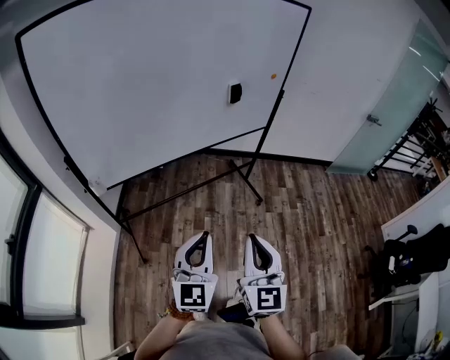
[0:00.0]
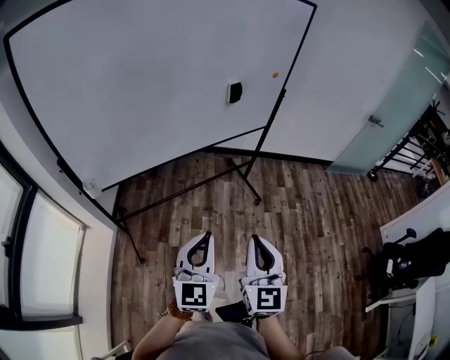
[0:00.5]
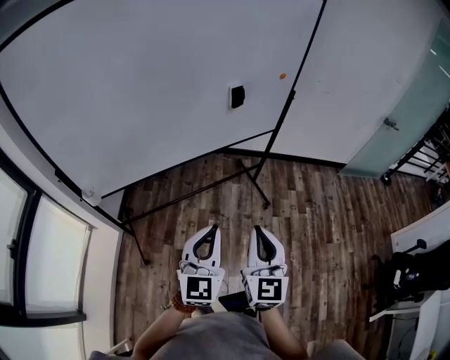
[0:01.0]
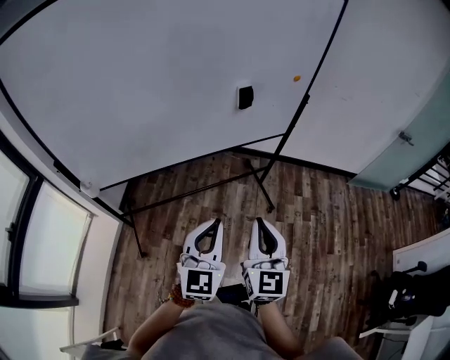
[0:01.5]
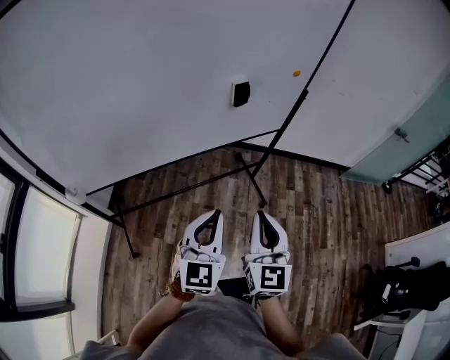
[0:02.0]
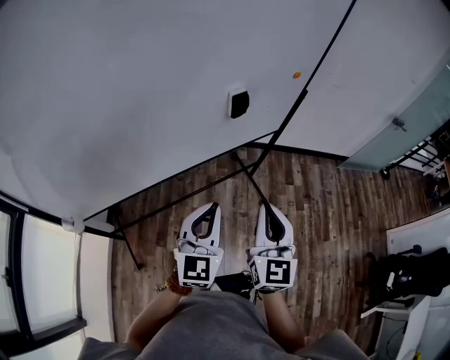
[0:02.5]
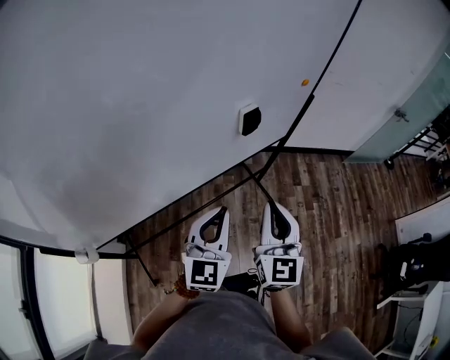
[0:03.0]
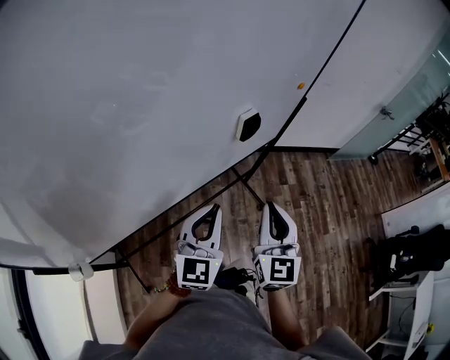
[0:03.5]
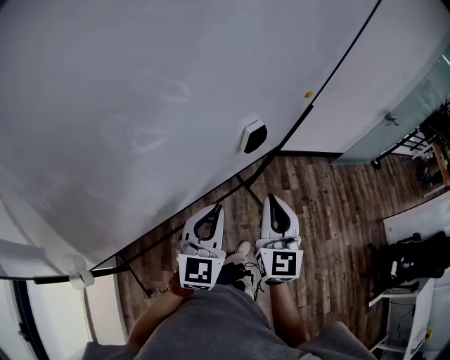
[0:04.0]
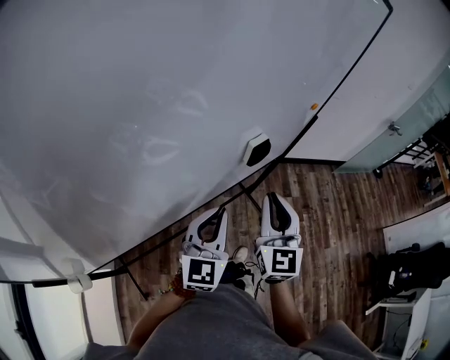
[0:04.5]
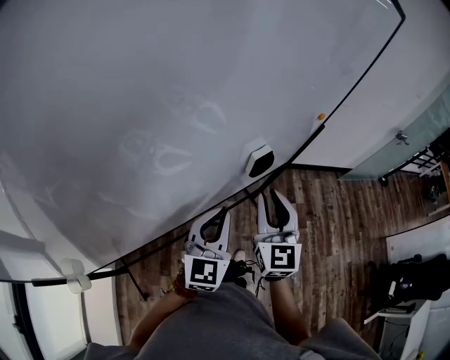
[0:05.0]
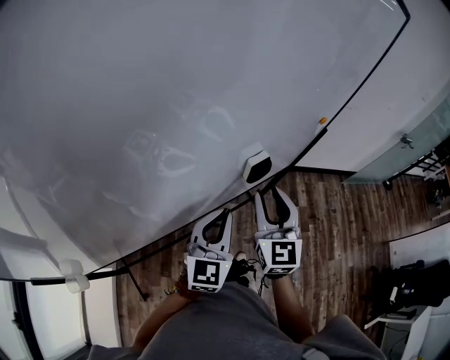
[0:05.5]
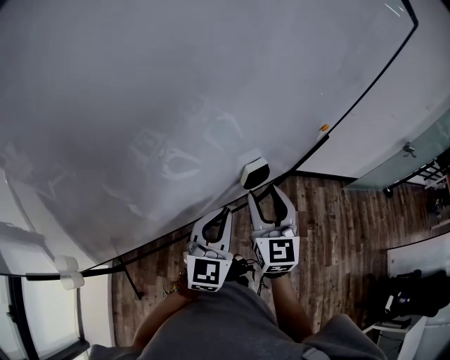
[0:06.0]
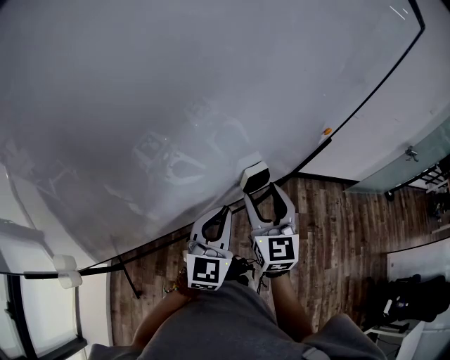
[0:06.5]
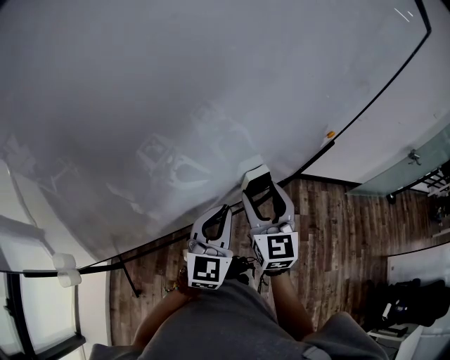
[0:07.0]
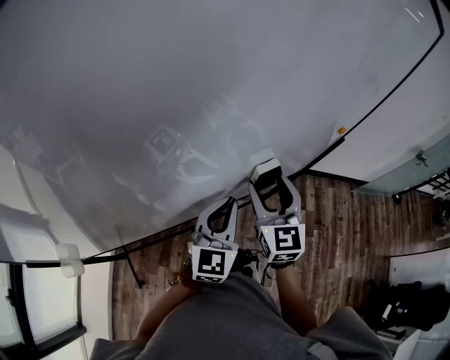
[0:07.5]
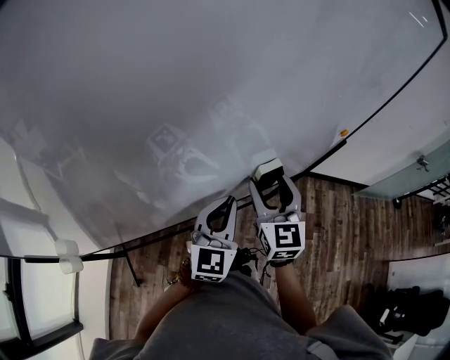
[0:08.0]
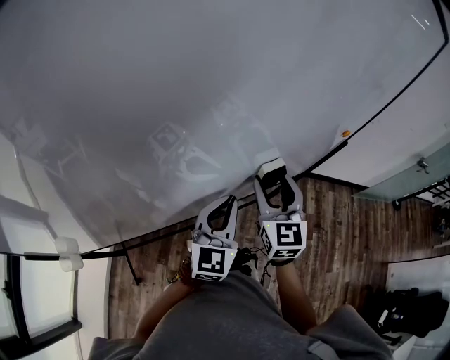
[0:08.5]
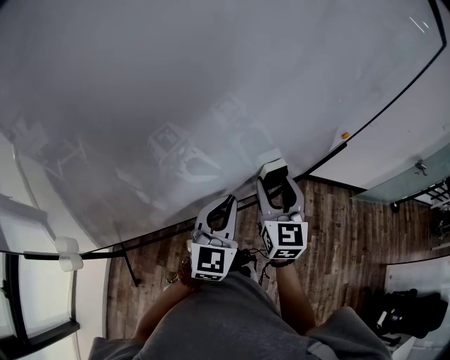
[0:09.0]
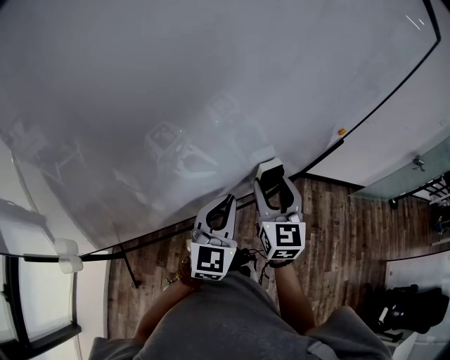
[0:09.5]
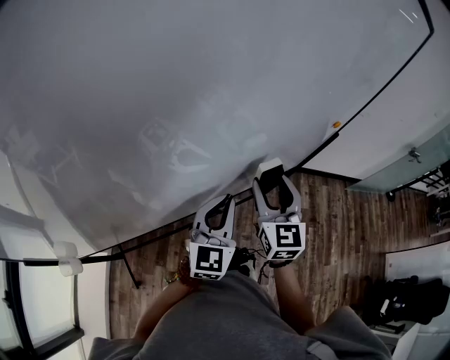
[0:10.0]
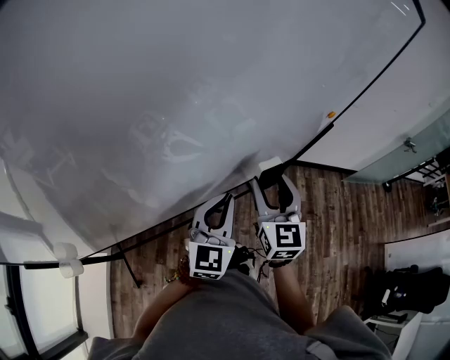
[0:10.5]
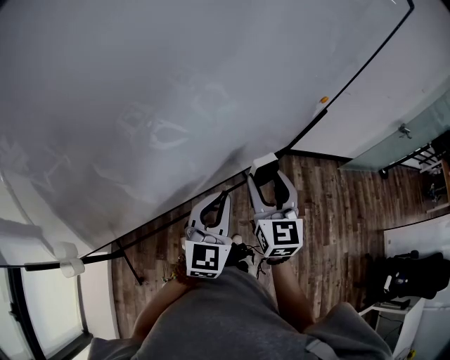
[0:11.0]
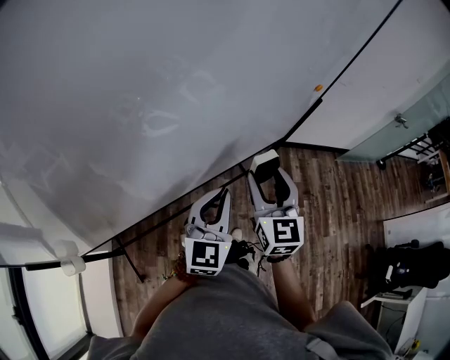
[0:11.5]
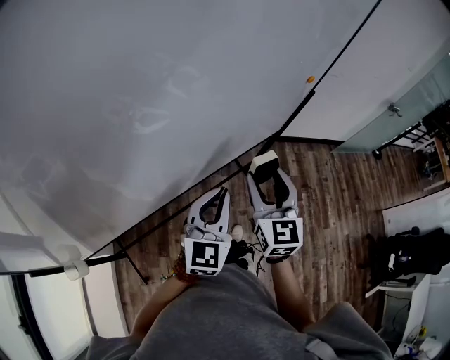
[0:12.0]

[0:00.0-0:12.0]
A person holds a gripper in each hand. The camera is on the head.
0:00.0 to 0:02.0: The two grippers go about 30 cm forward.
0:02.0 to 0:04.0: The two grippers go about 25 cm forward and to the left.
0:04.0 to 0:06.0: The two grippers go roughly 10 cm forward. The right gripper opens its fingers.
0:06.0 to 0:10.0: The grippers make only small movements.
0:10.0 to 0:12.0: The grippers both shift backward by roughly 10 cm.

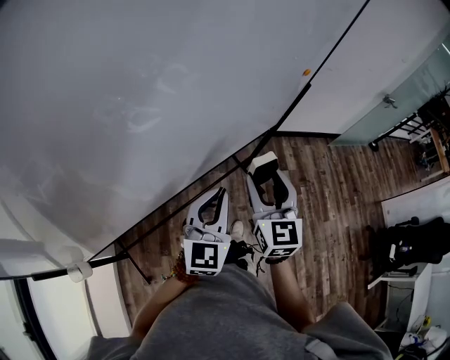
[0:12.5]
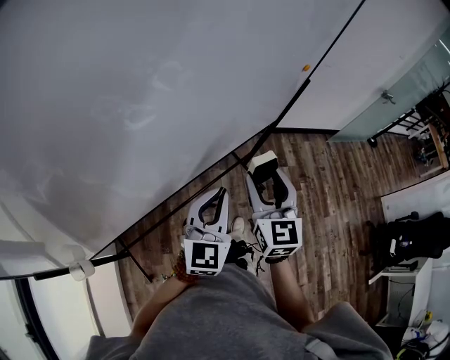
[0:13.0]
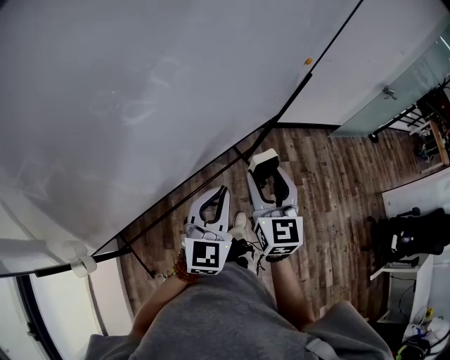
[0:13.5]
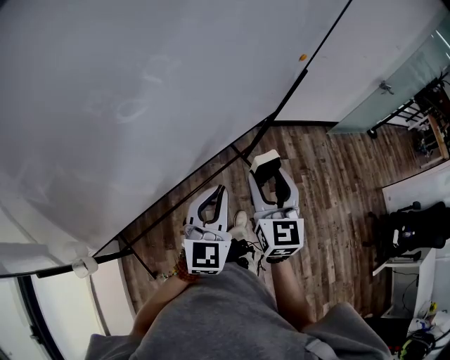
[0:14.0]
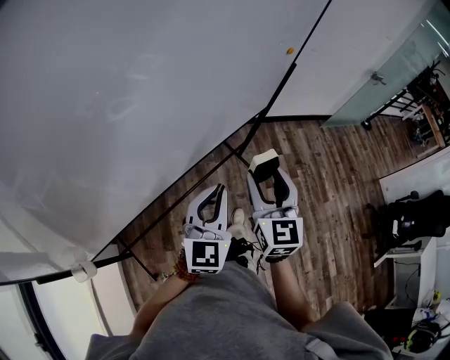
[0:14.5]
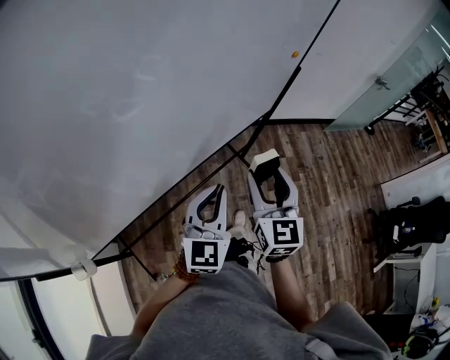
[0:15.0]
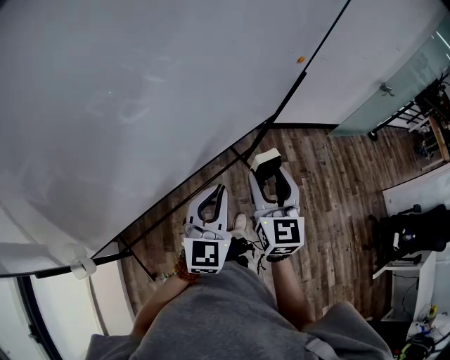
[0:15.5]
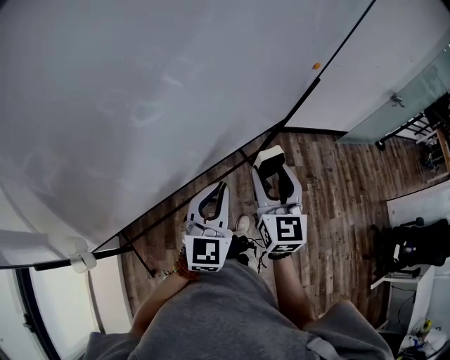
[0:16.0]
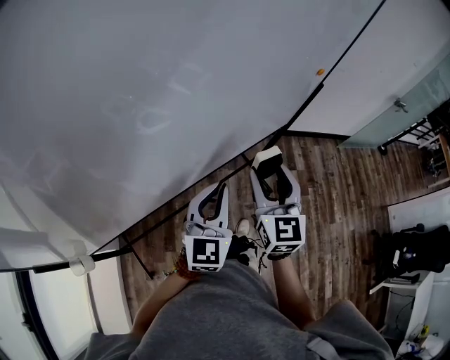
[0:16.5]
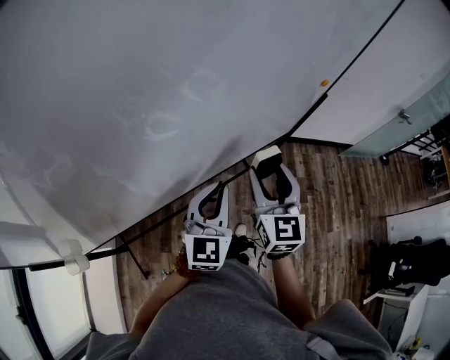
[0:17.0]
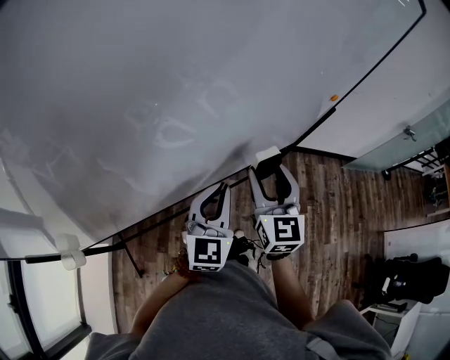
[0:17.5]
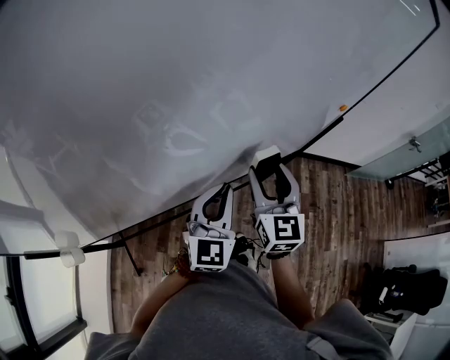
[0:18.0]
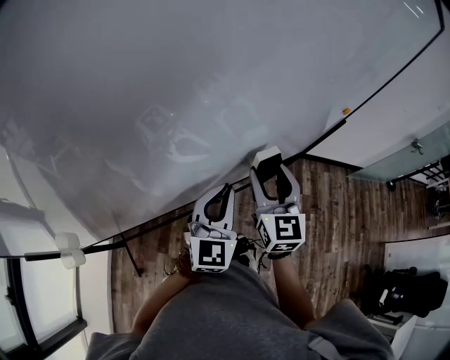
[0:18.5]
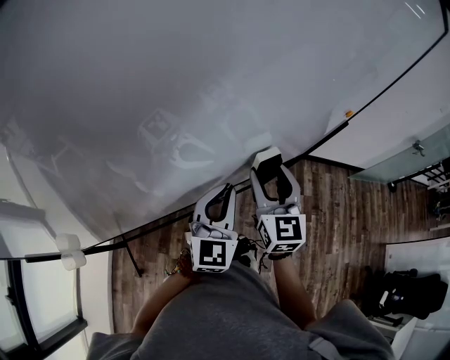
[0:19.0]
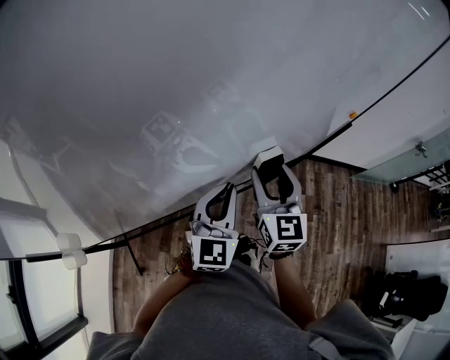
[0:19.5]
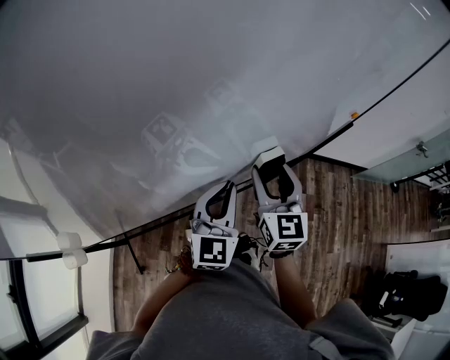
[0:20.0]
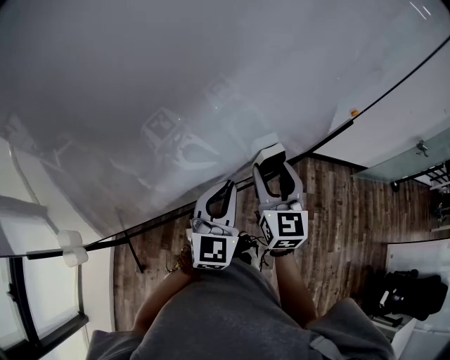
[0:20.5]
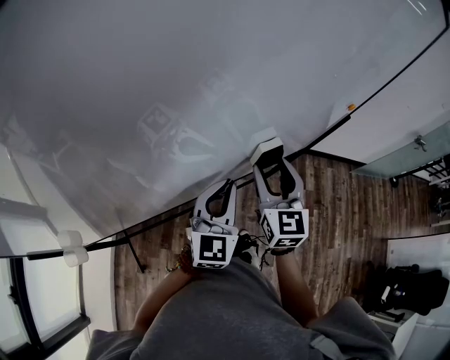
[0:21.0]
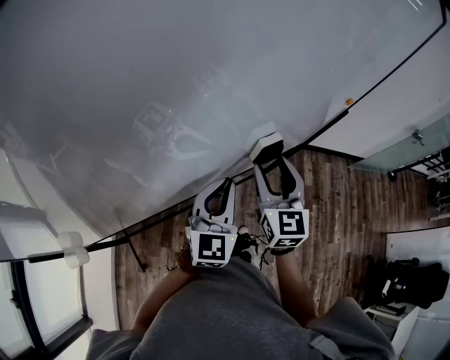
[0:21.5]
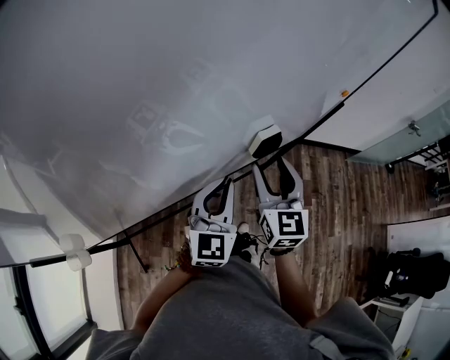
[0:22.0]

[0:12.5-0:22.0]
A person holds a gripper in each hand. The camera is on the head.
0:12.5 to 0:14.5: The right gripper goes roughly 5 cm backward, while the left gripper ends up roughly 5 cm from where it was.
0:14.5 to 0:16.5: Both grippers move forward, approximately 5 cm.
0:16.5 to 0:18.0: The two grippers go roughly 10 cm forward.
0:18.0 to 0:22.0: The grippers stay close to where they were, moving slightly.

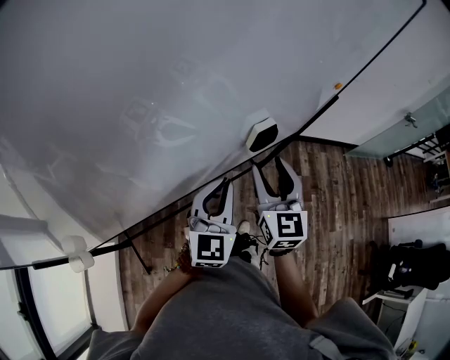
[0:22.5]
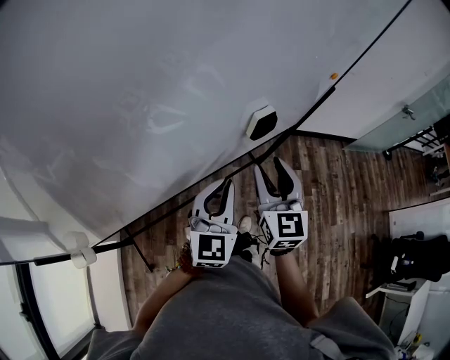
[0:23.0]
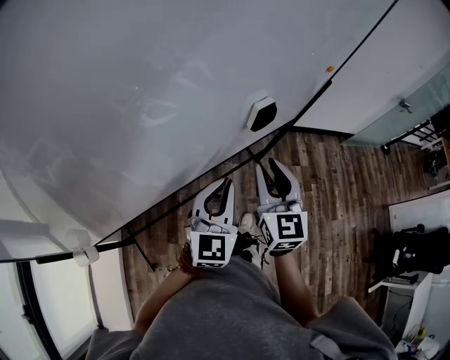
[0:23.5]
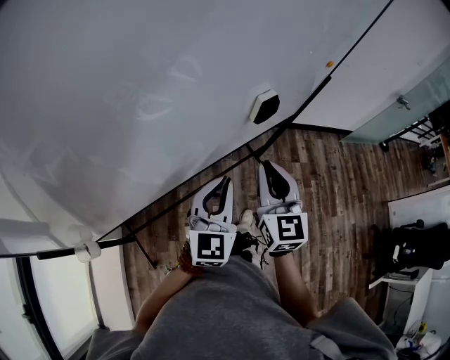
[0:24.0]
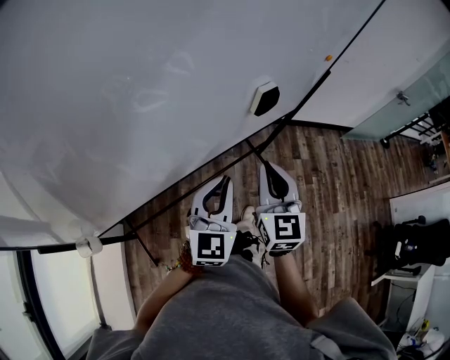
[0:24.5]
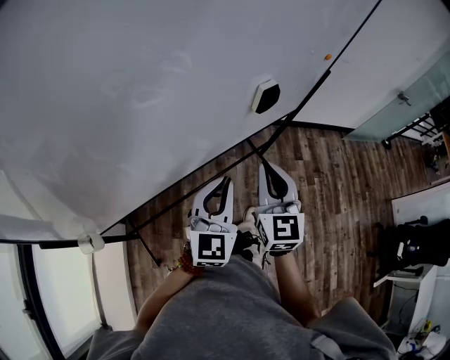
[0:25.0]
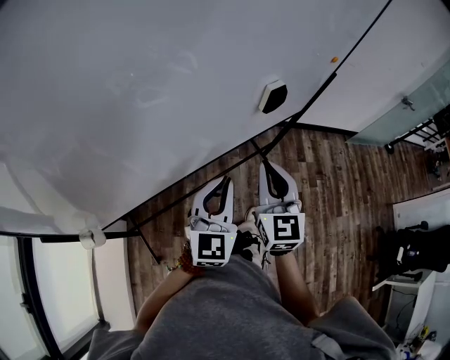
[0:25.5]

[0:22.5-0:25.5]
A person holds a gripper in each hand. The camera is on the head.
0:22.5 to 0:24.0: Both grippers move backward, approximately 10 cm. The right gripper closes.
0:24.0 to 0:25.5: The grippers stay close to where they were, moving slightly.

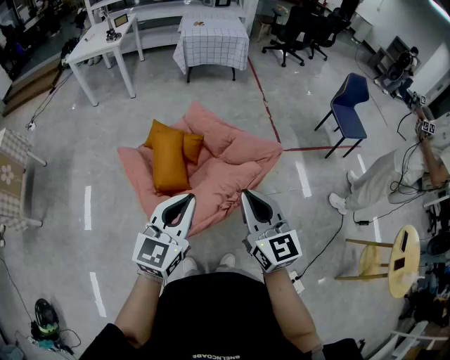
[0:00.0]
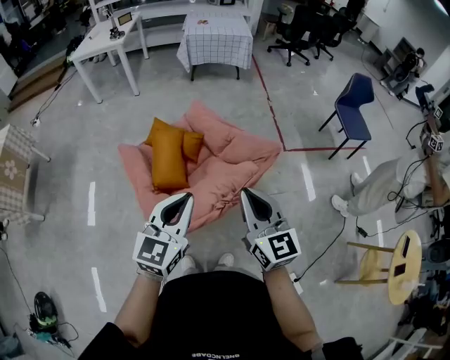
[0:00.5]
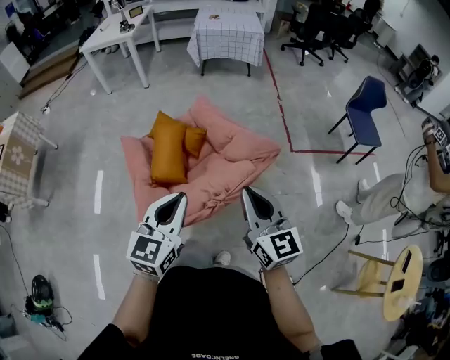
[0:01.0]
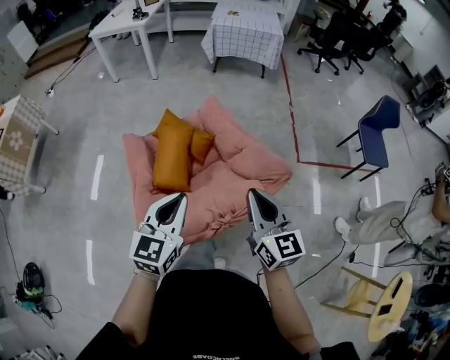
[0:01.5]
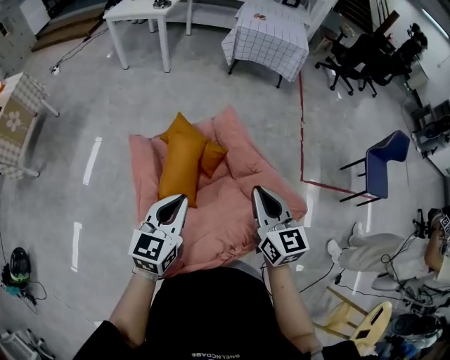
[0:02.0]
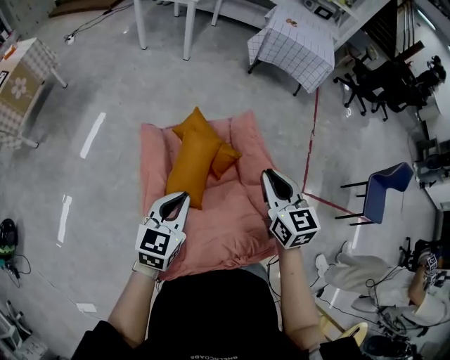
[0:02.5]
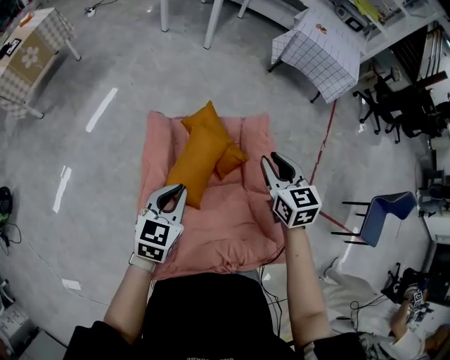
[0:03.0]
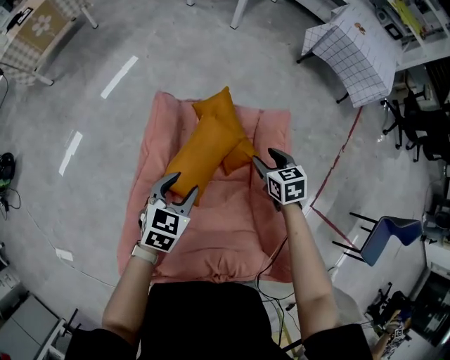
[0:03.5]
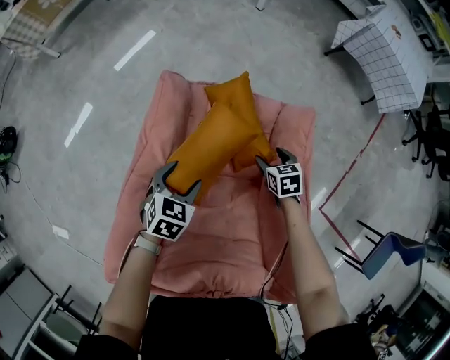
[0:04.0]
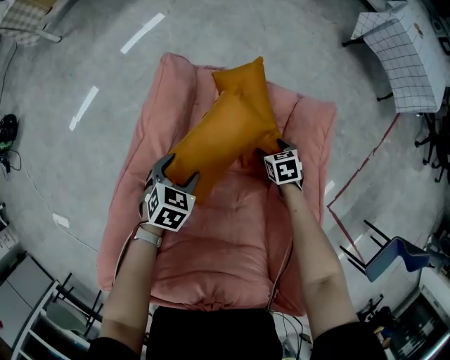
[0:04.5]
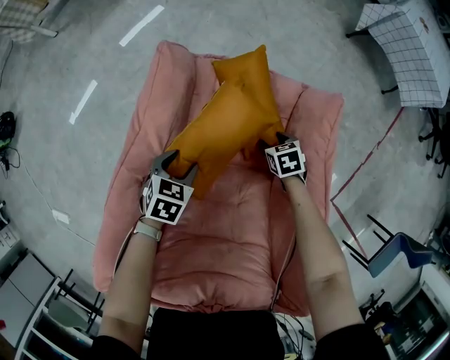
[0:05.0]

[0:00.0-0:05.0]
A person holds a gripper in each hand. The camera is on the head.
0:00.0 to 0:02.5: The right gripper is displaced forward by roughly 30 cm, and swivels roughly 30 degrees. Meanwhile the left gripper is displaced forward, downward and to the left by about 25 cm, and rotates roughly 30 degrees.
0:02.5 to 0:05.0: Both grippers travel together downward, about 40 cm. The left gripper tips its fingers downward by about 40 degrees, and opens its fingers, while the right gripper points its fingers about 50 degrees further downward, and opens.
